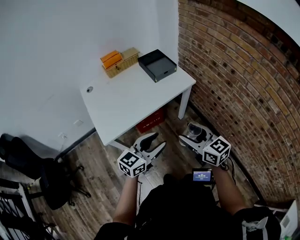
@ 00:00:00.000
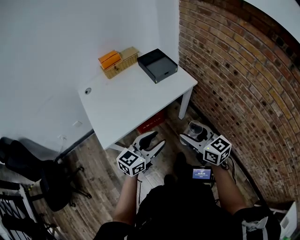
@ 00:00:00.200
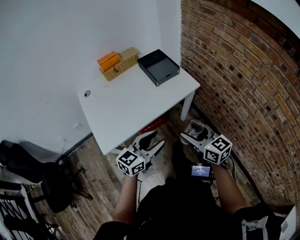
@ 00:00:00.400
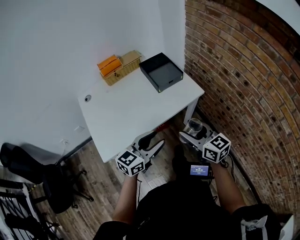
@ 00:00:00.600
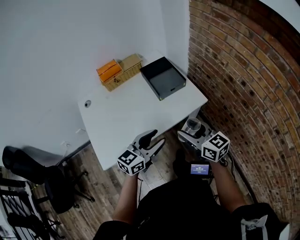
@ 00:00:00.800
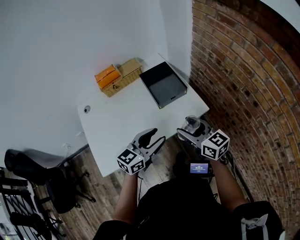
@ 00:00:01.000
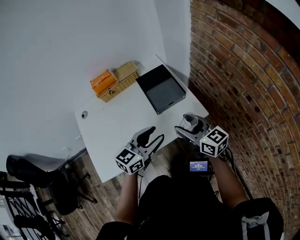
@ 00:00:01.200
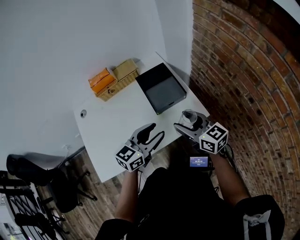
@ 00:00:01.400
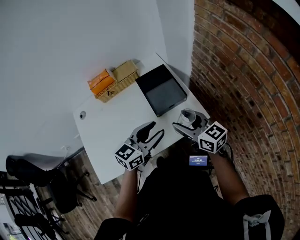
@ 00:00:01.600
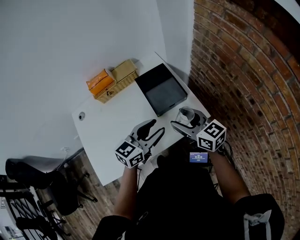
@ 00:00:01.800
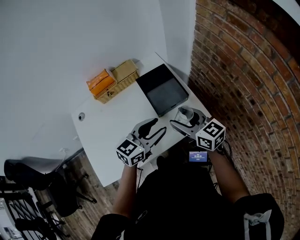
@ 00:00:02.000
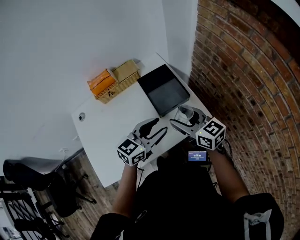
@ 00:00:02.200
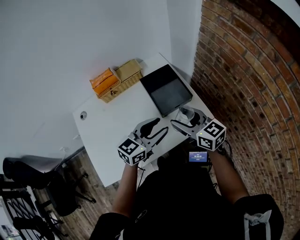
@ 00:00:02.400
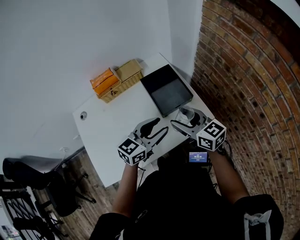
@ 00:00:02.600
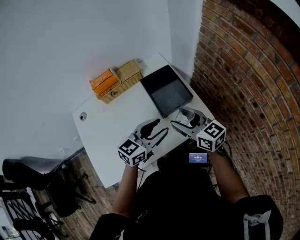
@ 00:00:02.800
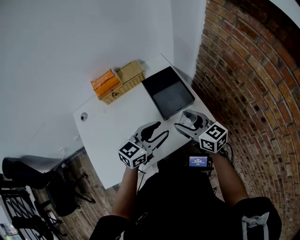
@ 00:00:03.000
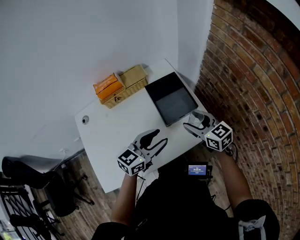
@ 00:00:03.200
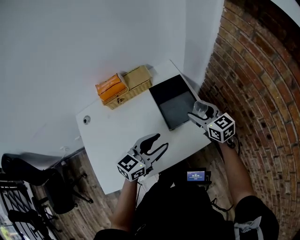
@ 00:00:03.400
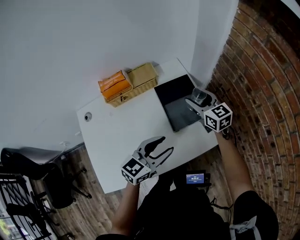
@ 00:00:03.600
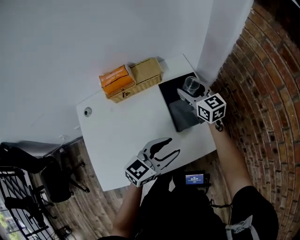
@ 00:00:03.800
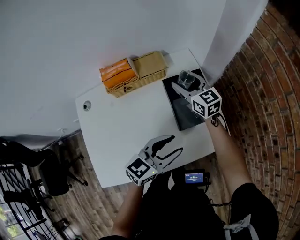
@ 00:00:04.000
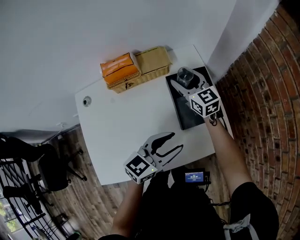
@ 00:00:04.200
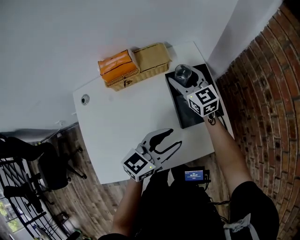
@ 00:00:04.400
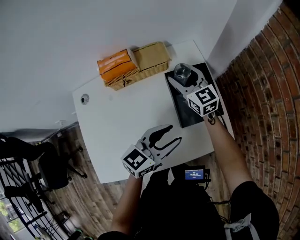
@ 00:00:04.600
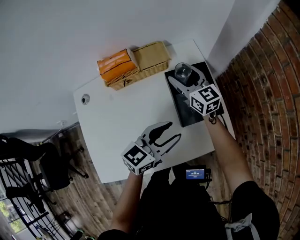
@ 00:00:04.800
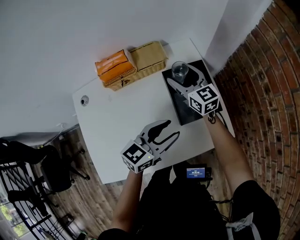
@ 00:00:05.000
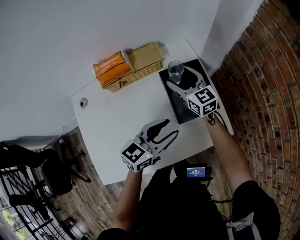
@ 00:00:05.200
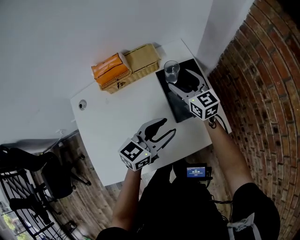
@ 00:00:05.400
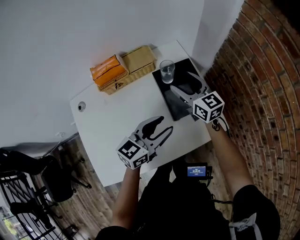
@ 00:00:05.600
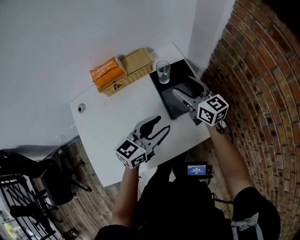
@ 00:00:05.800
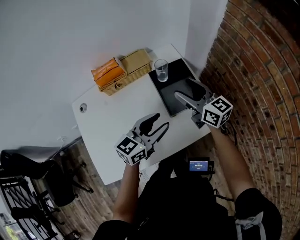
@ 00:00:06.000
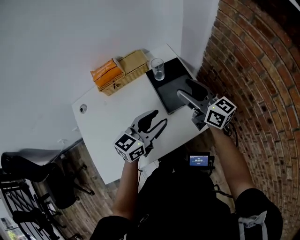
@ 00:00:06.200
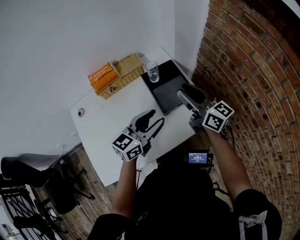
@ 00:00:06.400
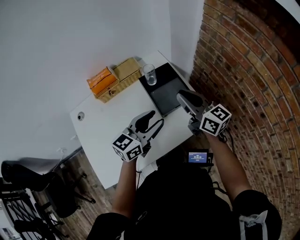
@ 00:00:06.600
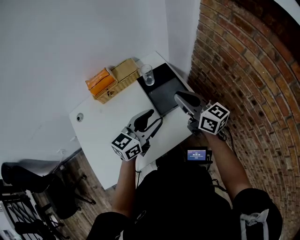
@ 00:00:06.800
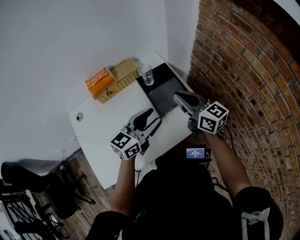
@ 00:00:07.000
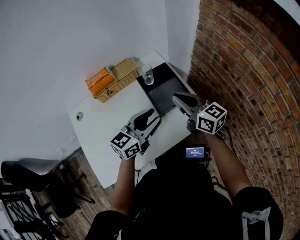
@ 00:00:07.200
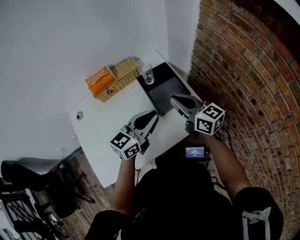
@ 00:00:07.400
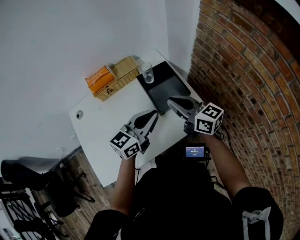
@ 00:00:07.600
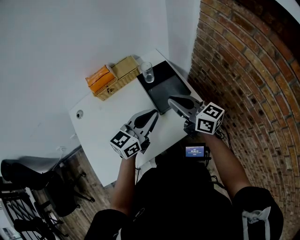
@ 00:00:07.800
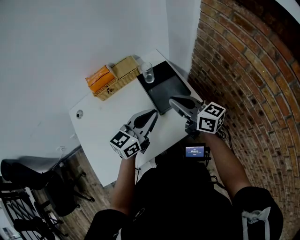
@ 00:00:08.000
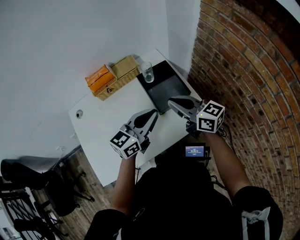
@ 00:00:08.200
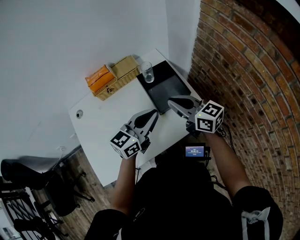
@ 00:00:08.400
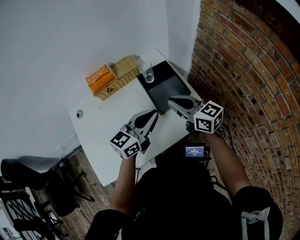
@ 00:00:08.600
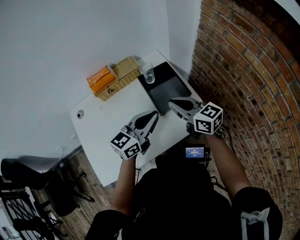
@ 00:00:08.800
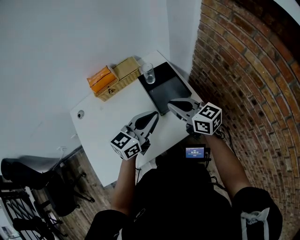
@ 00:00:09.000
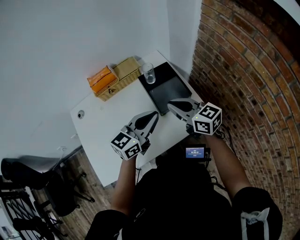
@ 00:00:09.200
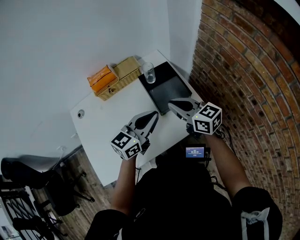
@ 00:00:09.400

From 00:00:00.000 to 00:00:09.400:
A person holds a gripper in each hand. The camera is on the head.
From 00:00:00.000 to 00:00:01.600: The grippers both shift forward by about 40 cm.
From 00:00:01.600 to 00:00:03.200: The right gripper heads forward, covering approximately 5 cm.
From 00:00:03.200 to 00:00:04.800: The left gripper moves forward, about 5 cm. Meanwhile the right gripper heads forward and to the left, covering roughly 25 cm.
From 00:00:04.800 to 00:00:06.200: The right gripper heads backward, to the right and upward, covering approximately 20 cm; the left gripper shifts by about 5 cm.
From 00:00:06.200 to 00:00:07.800: The left gripper closes its fingers; the right gripper heads backward, covering some 5 cm, and closes.
From 00:00:07.800 to 00:00:09.400: The grippers move only a little.

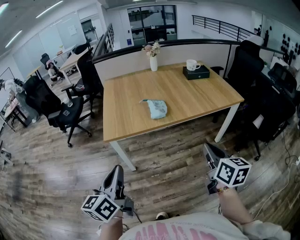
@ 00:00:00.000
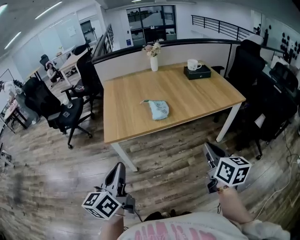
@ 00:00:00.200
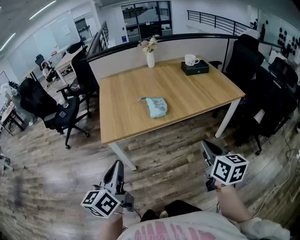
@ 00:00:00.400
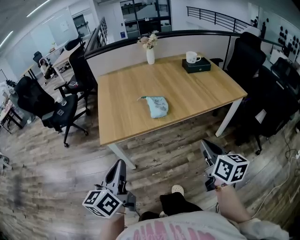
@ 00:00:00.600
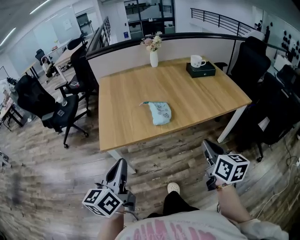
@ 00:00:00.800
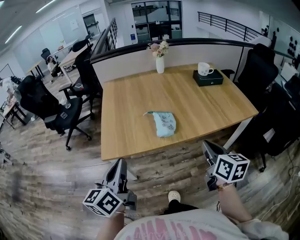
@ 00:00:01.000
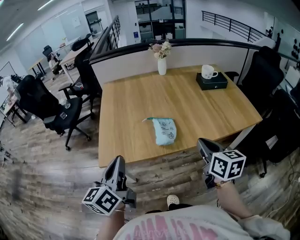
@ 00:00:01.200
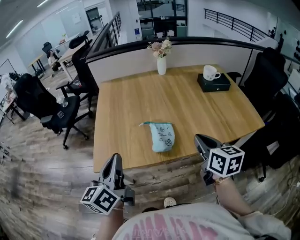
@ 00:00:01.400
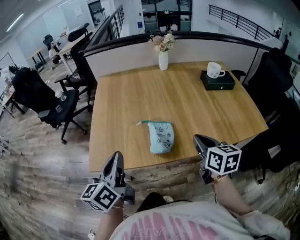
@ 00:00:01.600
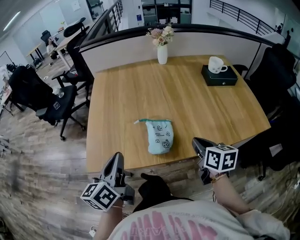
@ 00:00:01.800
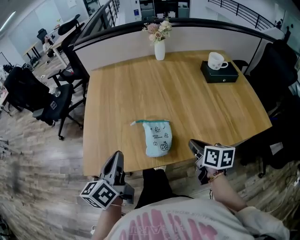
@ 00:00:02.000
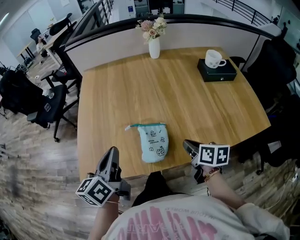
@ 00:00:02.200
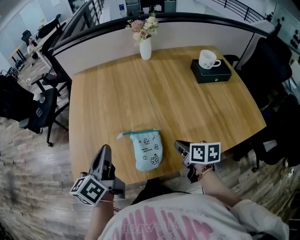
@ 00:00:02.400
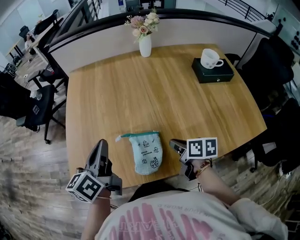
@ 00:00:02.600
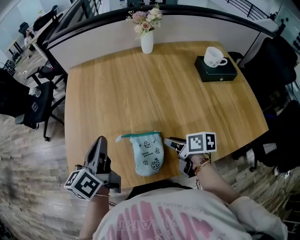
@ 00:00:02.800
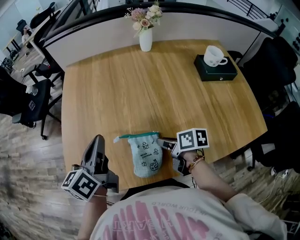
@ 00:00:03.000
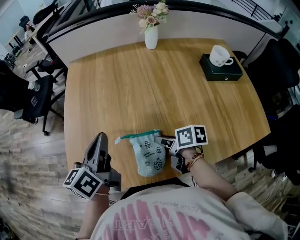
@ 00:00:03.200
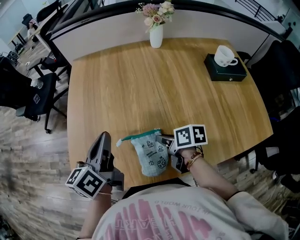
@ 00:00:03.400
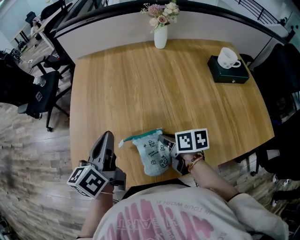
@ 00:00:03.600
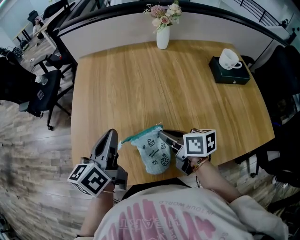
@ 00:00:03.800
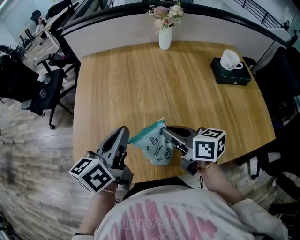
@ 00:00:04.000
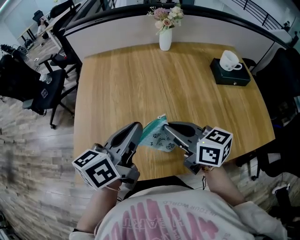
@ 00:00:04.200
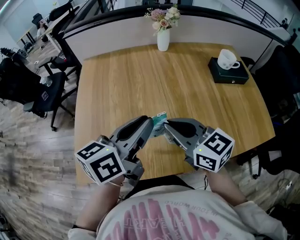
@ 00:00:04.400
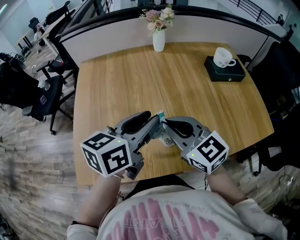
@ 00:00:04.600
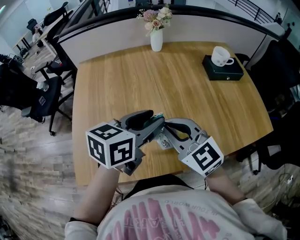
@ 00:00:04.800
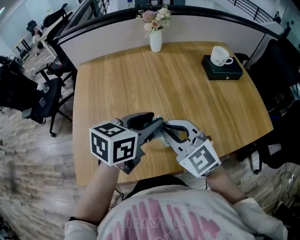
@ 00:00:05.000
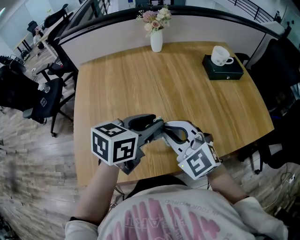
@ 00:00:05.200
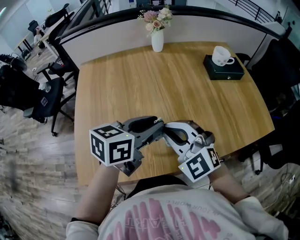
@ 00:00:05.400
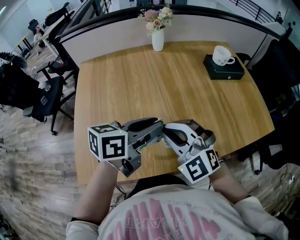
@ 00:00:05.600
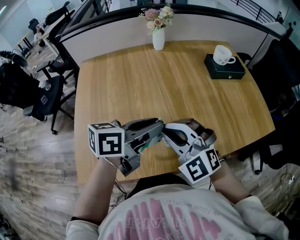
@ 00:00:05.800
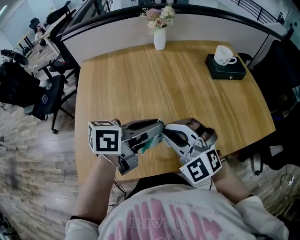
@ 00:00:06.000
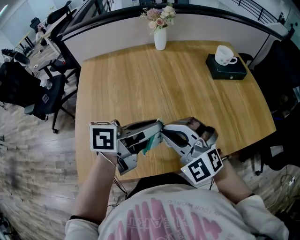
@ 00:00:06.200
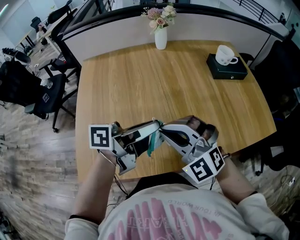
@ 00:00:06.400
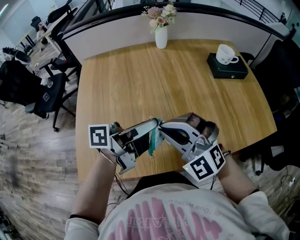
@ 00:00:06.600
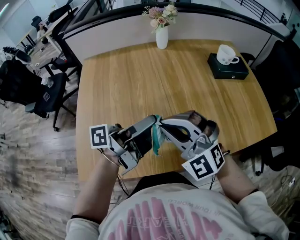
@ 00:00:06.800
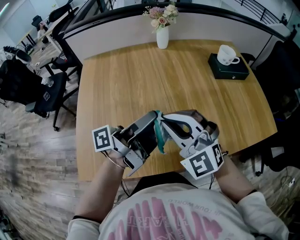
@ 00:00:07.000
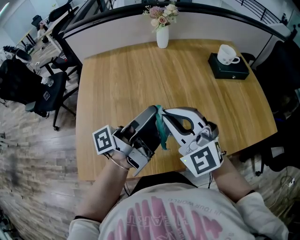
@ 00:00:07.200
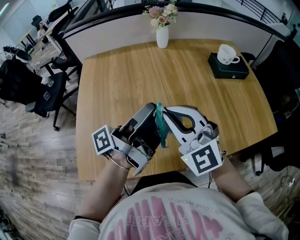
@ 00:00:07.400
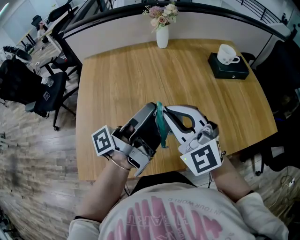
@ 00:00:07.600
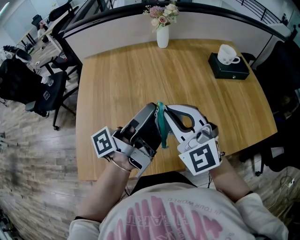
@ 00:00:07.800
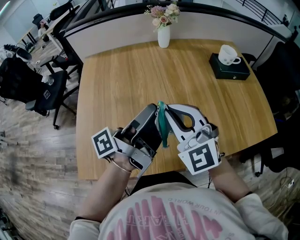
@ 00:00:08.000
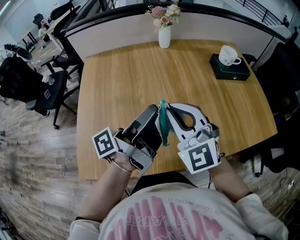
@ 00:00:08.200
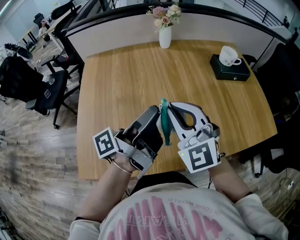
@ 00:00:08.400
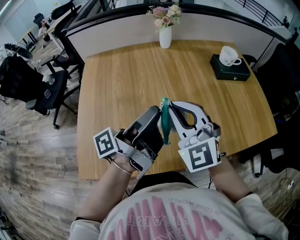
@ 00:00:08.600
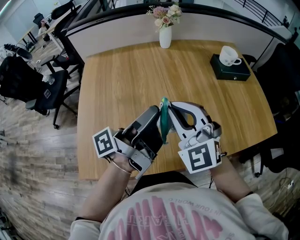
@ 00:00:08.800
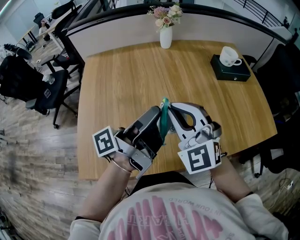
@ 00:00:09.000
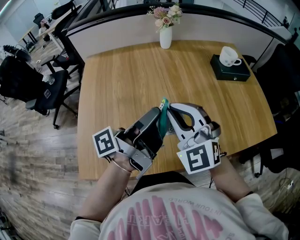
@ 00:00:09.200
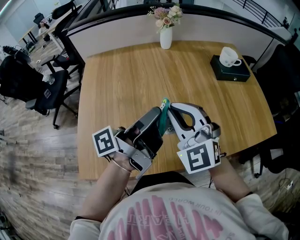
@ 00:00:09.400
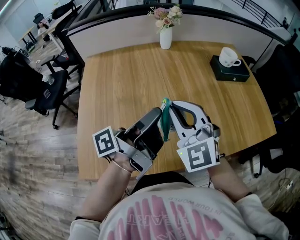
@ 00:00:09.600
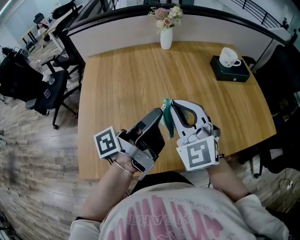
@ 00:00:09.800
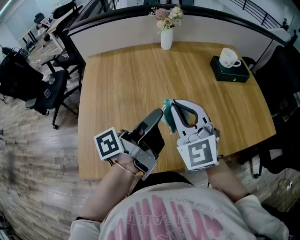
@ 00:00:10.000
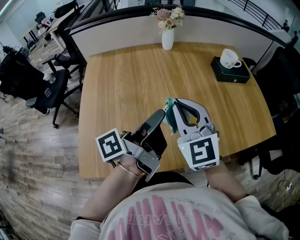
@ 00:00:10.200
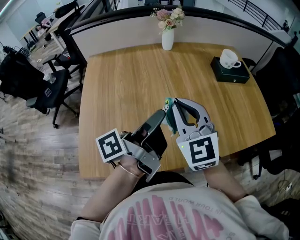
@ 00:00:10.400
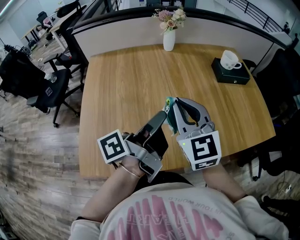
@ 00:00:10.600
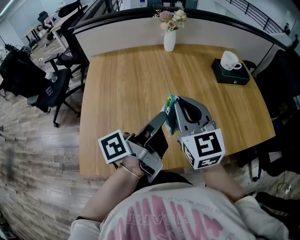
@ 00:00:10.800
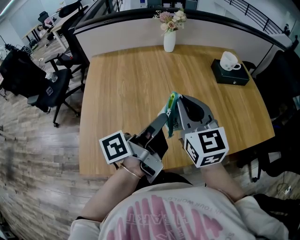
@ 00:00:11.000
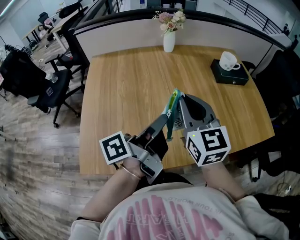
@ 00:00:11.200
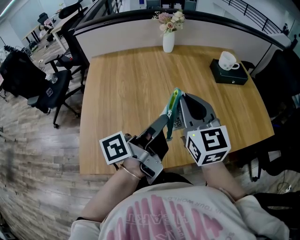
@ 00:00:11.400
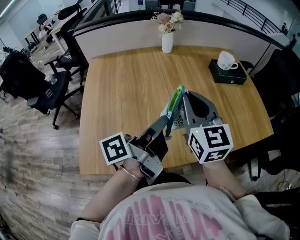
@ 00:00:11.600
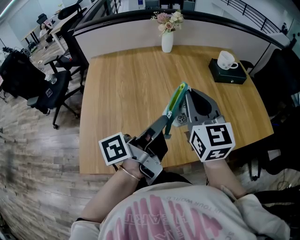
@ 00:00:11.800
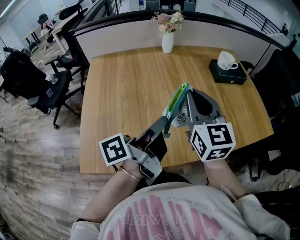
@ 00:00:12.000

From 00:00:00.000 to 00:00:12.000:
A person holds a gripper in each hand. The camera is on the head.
From 00:00:00.000 to 00:00:01.600: Both grippers travel together forward, about 35 cm.
From 00:00:01.600 to 00:00:03.000: The right gripper moves downward and forward, about 20 cm, rotates roughly 40 degrees, and opens its fingers; the left gripper moves forward, roughly 20 cm.
From 00:00:03.000 to 00:00:04.400: The left gripper moves to the right and upward, approximately 10 cm, and turns by approximately 20 degrees. The right gripper is displaced upward by roughly 20 cm, twists about 50 degrees counterclockwise, seen from behind, and closes.
From 00:00:04.400 to 00:00:06.000: The right gripper rotates around the line of its fingers by some 60 degrees, counterclockwise from behind. Meanwhile the left gripper ends up some 5 cm from where it was, turns by roughly 30 degrees, and opens, then closes again.
From 00:00:06.000 to 00:00:07.600: The right gripper moves some 5 cm; the left gripper shifts by some 5 cm, and angles its fingers upward, by some 30 degrees.
From 00:00:07.600 to 00:00:09.000: The grippers stay close to where they were, moving slightly.
From 00:00:09.000 to 00:00:10.400: The right gripper changes its angle by about 20 degrees.
From 00:00:10.400 to 00:00:12.000: The right gripper shifts by some 5 cm, and swivels about 20 degrees.

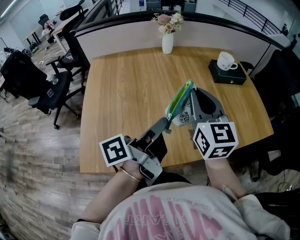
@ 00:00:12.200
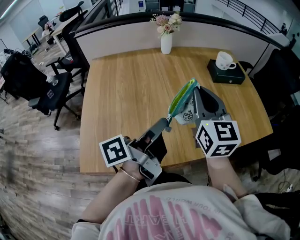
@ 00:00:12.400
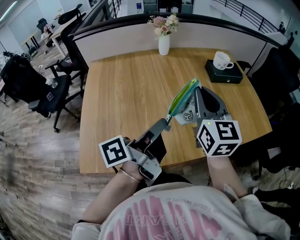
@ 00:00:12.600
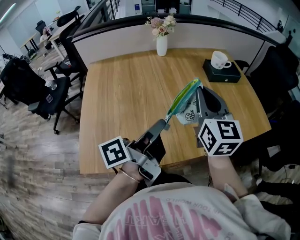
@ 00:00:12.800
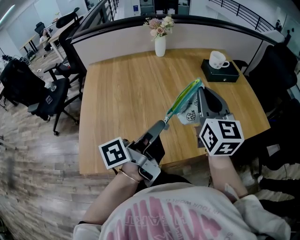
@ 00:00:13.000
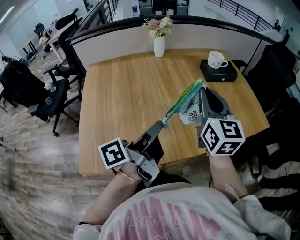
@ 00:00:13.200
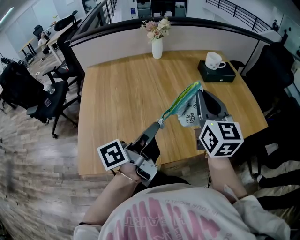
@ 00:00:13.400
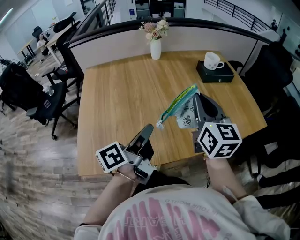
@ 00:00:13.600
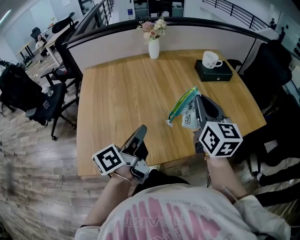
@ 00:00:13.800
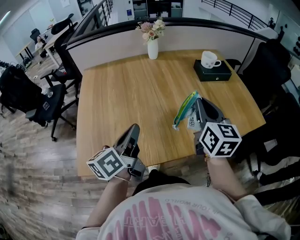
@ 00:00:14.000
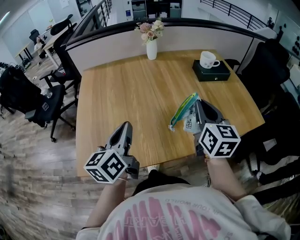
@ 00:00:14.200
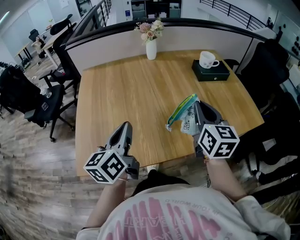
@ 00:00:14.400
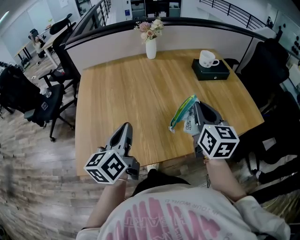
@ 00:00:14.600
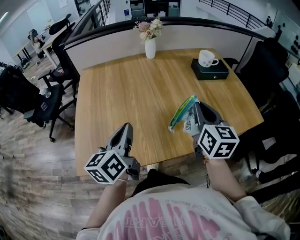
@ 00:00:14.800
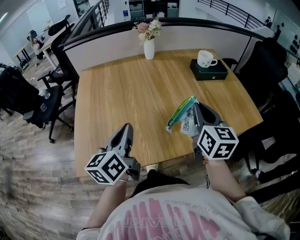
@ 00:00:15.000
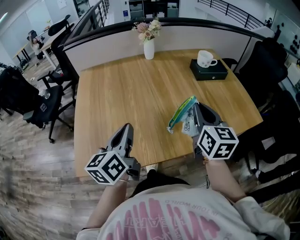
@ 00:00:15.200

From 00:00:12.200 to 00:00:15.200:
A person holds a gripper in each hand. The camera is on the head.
From 00:00:12.200 to 00:00:13.800: The left gripper changes place by approximately 5 cm; the right gripper is displaced to the right by some 10 cm.
From 00:00:13.800 to 00:00:15.200: The left gripper rotates approximately 40 degrees.
